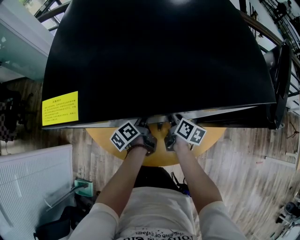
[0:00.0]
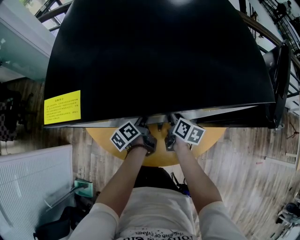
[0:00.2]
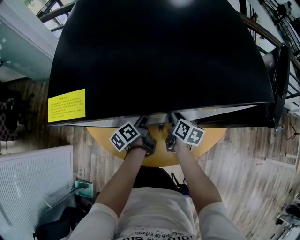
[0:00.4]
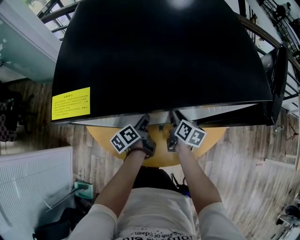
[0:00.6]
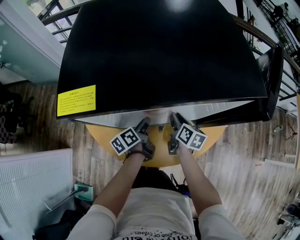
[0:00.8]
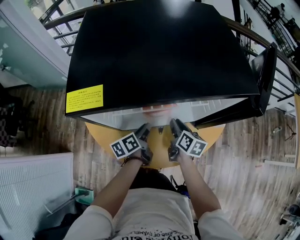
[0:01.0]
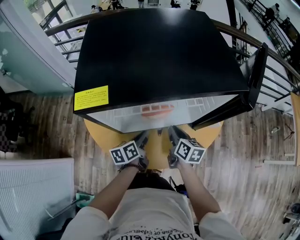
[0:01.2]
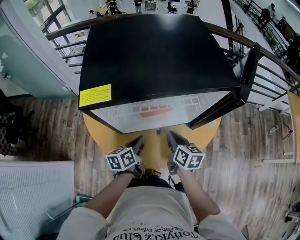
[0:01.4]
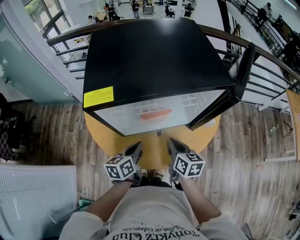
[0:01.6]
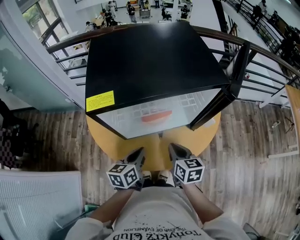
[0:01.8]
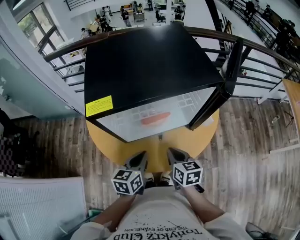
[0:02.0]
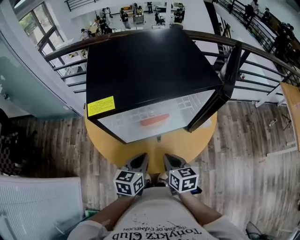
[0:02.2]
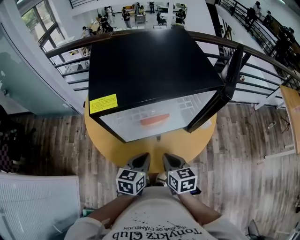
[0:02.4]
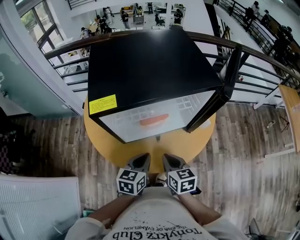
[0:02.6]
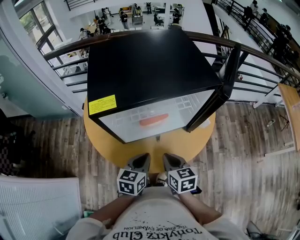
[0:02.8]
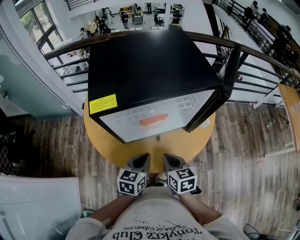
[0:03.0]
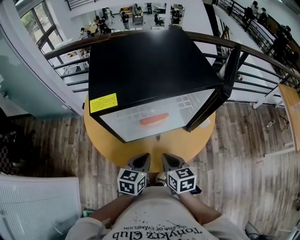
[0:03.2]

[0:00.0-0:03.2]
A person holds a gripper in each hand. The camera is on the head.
0:00.0 to 0:01.6: The right gripper shifts by approximately 20 cm.
0:01.6 to 0:03.2: The right gripper ends up some 10 cm from where it was.

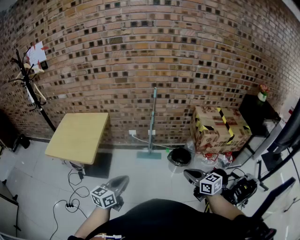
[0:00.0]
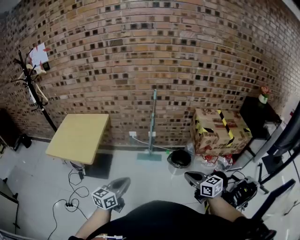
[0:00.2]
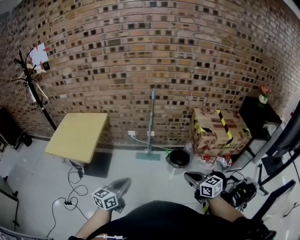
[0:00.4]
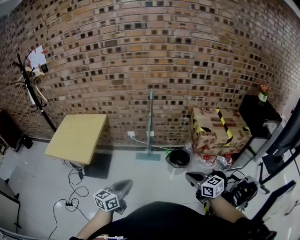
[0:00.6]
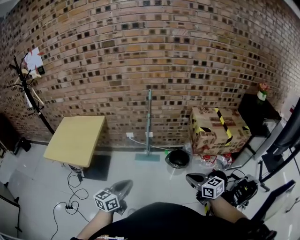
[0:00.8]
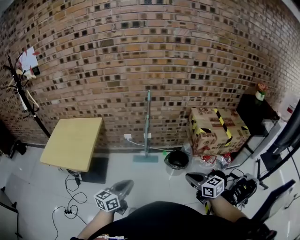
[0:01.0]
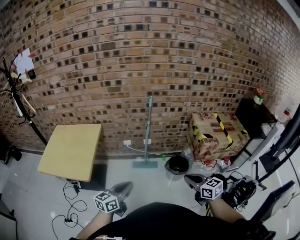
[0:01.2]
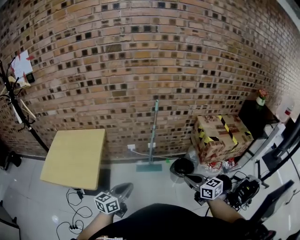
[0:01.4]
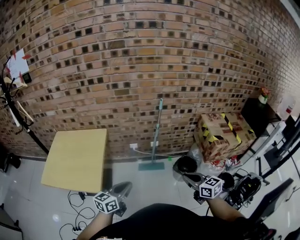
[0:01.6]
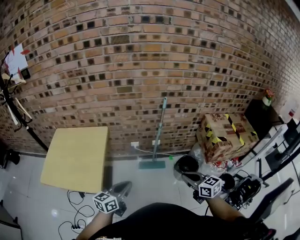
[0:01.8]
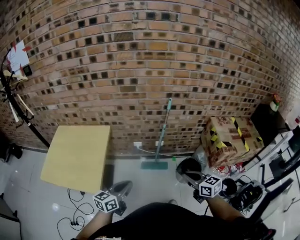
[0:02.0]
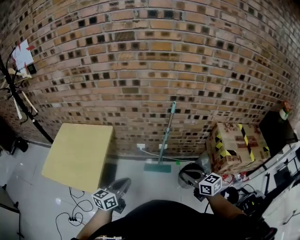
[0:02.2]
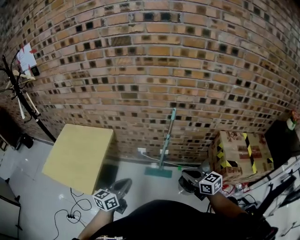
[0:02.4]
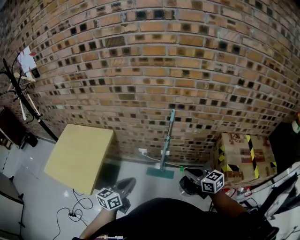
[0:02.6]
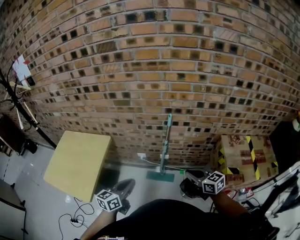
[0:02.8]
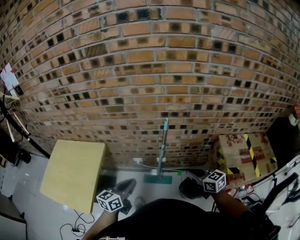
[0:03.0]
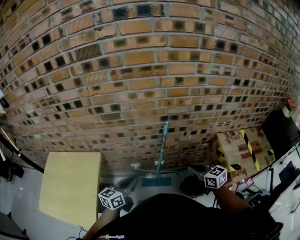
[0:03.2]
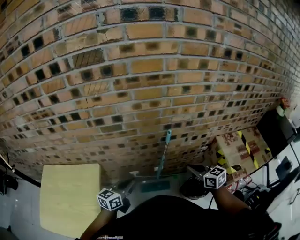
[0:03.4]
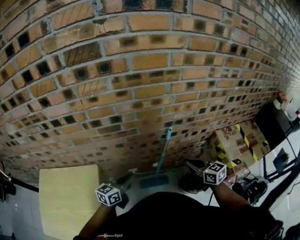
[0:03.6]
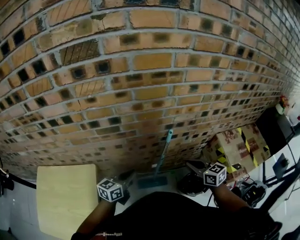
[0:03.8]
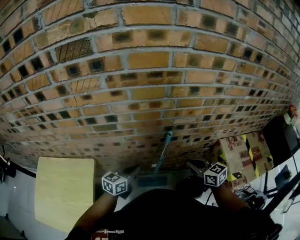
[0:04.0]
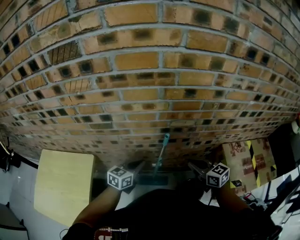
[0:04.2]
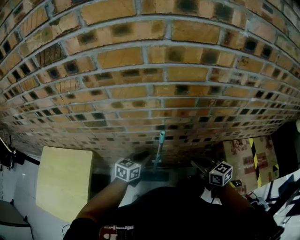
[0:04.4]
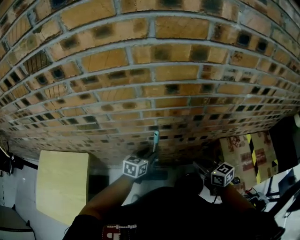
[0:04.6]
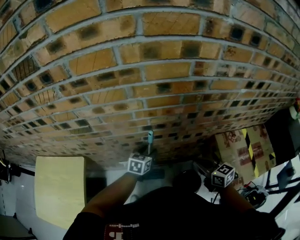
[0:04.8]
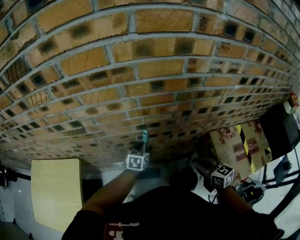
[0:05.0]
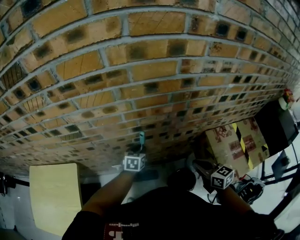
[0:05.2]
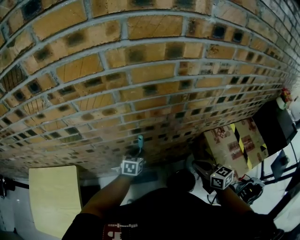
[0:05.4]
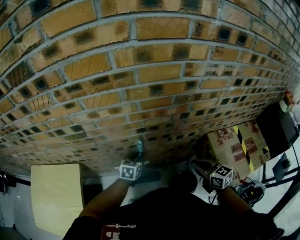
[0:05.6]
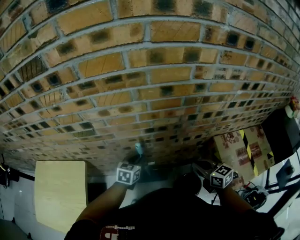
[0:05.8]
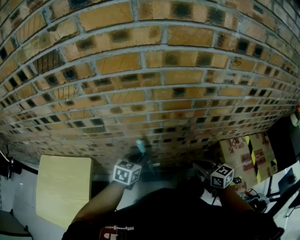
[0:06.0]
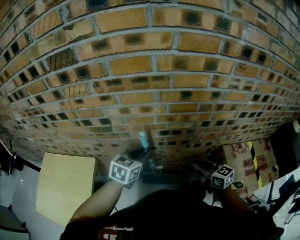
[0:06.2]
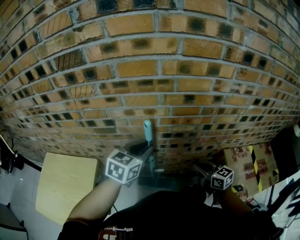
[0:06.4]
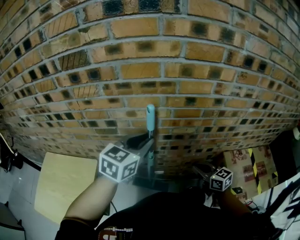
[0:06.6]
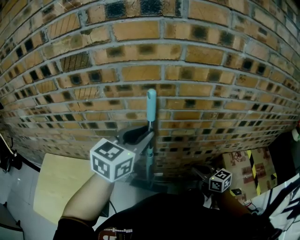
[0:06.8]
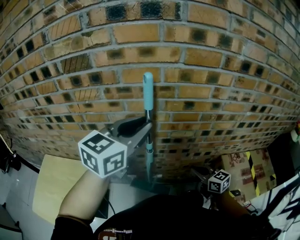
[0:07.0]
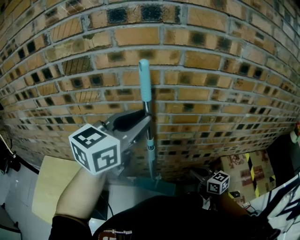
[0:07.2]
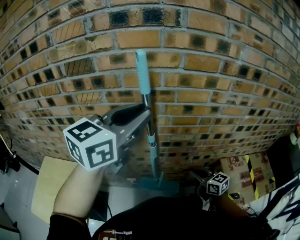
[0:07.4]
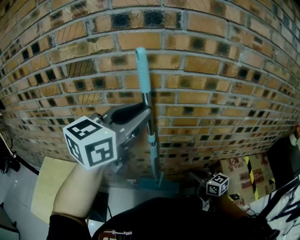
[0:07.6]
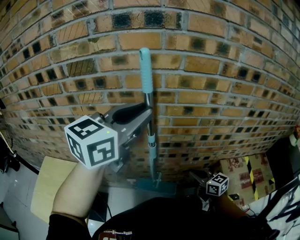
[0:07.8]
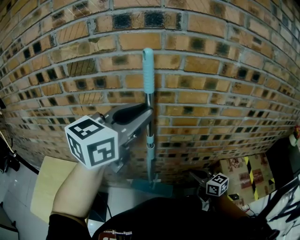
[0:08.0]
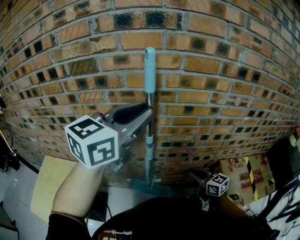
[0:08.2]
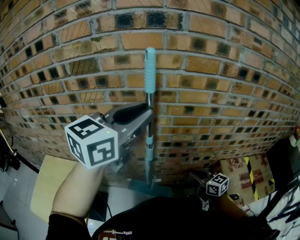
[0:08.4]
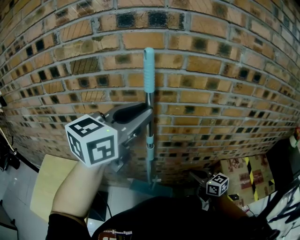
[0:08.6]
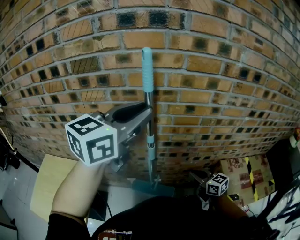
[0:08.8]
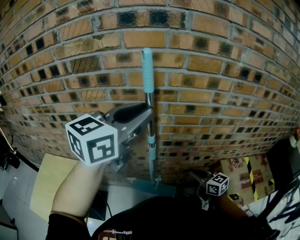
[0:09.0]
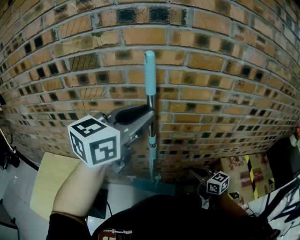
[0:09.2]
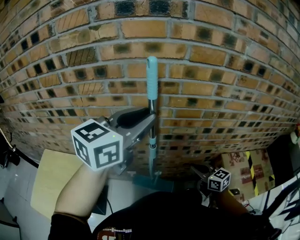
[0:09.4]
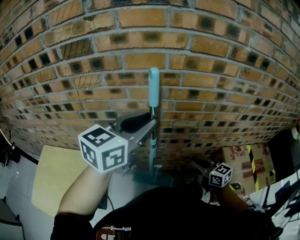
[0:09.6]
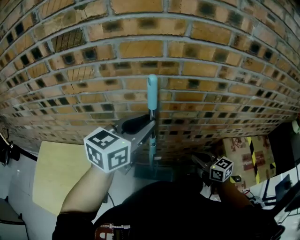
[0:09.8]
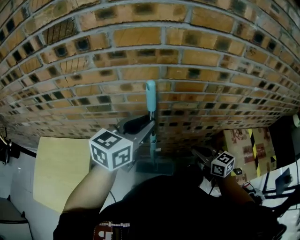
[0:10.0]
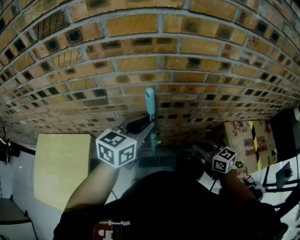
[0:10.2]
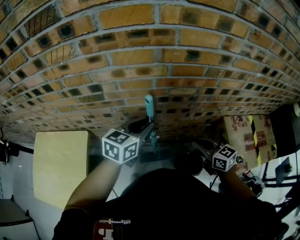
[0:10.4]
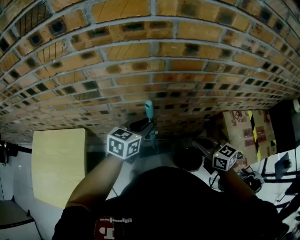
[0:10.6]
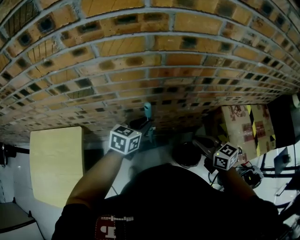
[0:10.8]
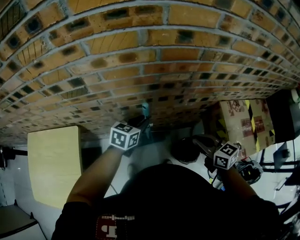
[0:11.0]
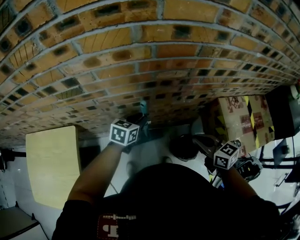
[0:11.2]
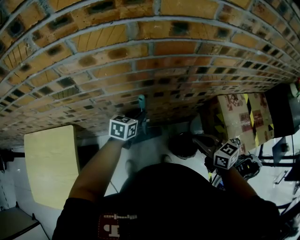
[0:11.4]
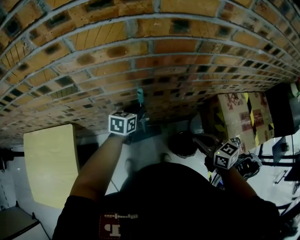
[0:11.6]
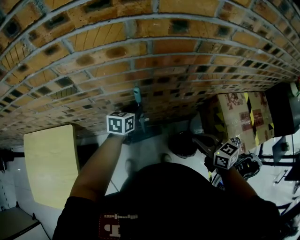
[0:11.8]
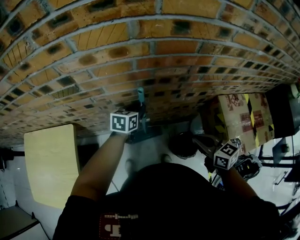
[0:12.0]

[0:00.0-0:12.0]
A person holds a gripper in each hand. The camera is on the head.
0:00.0 to 0:01.6: The two grippers go some 20 cm forward and to the left.
0:01.6 to 0:03.0: The two grippers go some 30 cm forward and to the right.
0:03.0 to 0:04.4: The left gripper goes some 30 cm forward, while the right gripper shifts some 20 cm forward.
0:04.4 to 0:06.0: The left gripper goes downward and returns, some 10 cm each way, and opens and closes again.
0:06.0 to 0:07.6: The right gripper moves roughly 5 cm, while the left gripper travels upward by roughly 40 cm, and tips its fingers upward by approximately 30 degrees.
0:07.6 to 0:09.0: Both grippers stay put.
0:09.0 to 0:10.4: The left gripper heads downward, covering approximately 30 cm, and rotates about 20 degrees.
0:10.4 to 0:12.0: The right gripper ends up approximately 5 cm from where it was; the left gripper is displaced downward by some 20 cm.

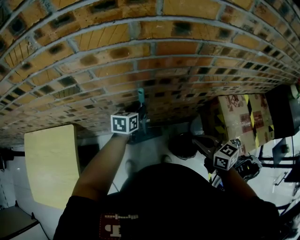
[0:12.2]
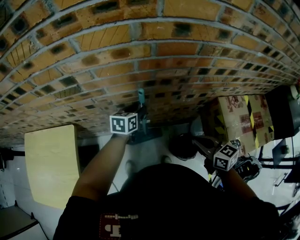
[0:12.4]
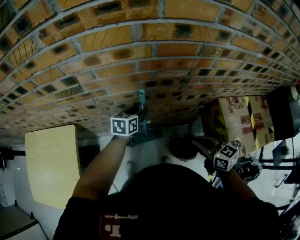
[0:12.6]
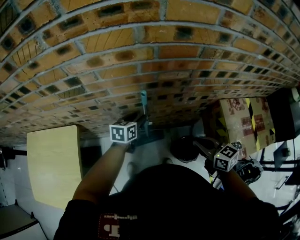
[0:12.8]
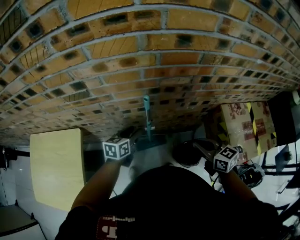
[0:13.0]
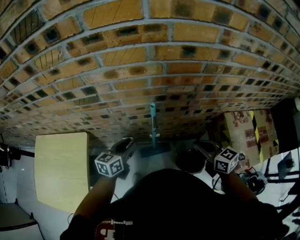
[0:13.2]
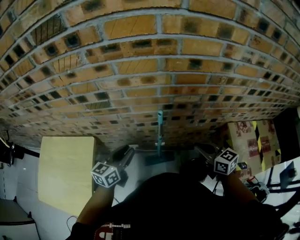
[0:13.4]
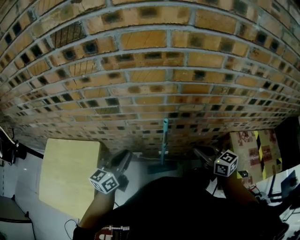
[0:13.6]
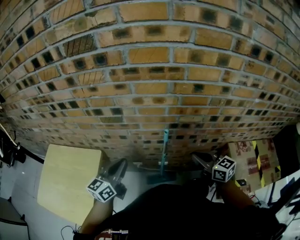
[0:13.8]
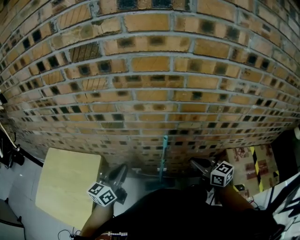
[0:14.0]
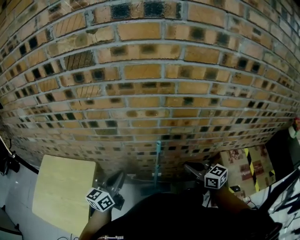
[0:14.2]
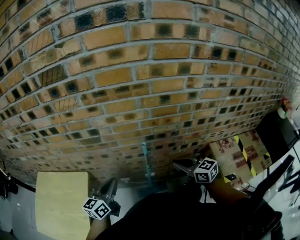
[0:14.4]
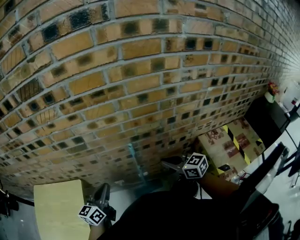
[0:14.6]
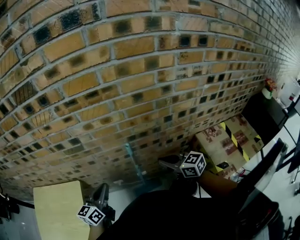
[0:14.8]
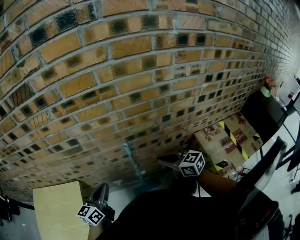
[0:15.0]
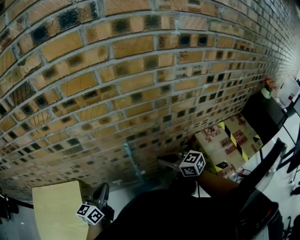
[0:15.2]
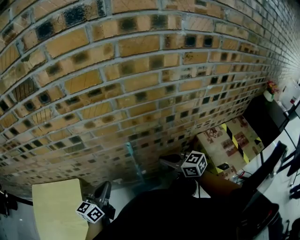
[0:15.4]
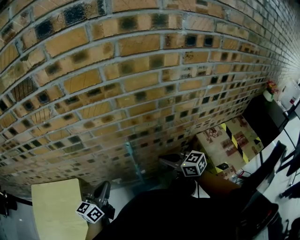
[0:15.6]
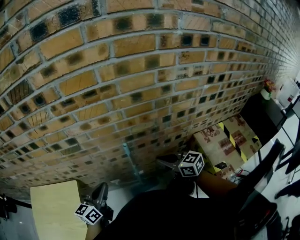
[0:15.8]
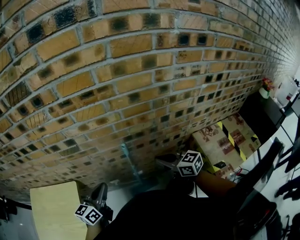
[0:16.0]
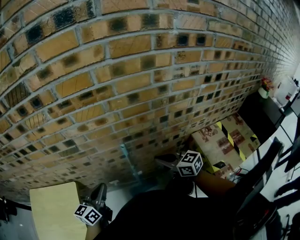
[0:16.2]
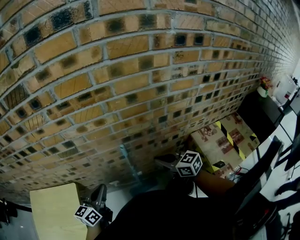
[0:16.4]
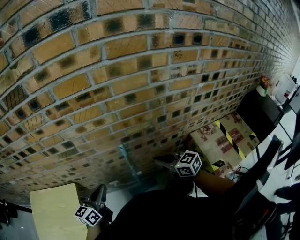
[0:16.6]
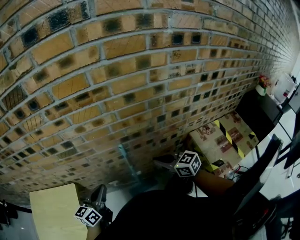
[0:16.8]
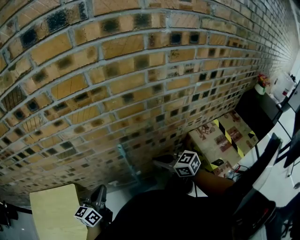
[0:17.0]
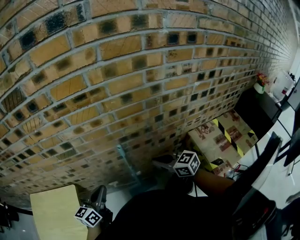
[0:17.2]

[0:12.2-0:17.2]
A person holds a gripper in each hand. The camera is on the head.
0:12.2 to 0:13.8: The right gripper shifts roughly 15 cm upward, forward and to the left; the left gripper is displaced upward, to the left and backward by roughly 30 cm, tilts its fingers roughly 30 degrees upward, and closes its fingers.
0:13.8 to 0:15.6: The grippers stay close to where they were, moving slightly.
0:15.6 to 0:17.2: Neither gripper changes place.

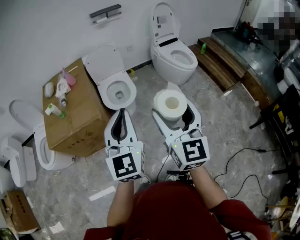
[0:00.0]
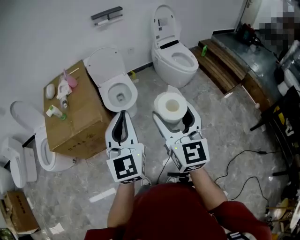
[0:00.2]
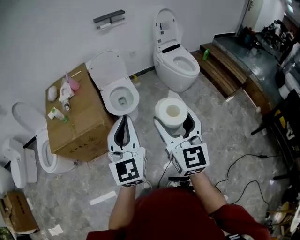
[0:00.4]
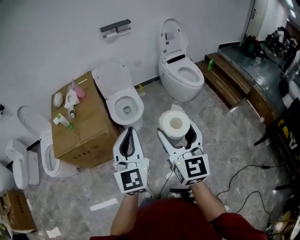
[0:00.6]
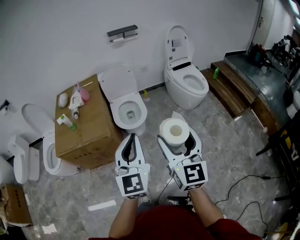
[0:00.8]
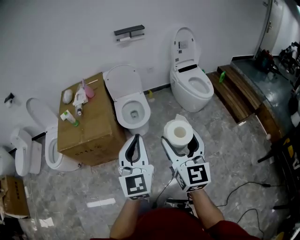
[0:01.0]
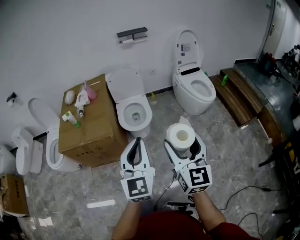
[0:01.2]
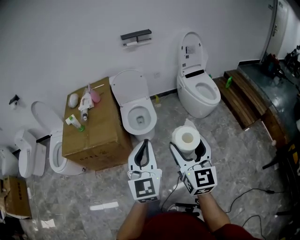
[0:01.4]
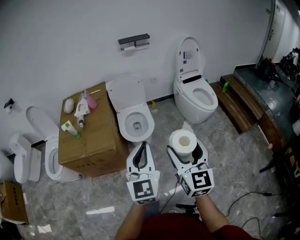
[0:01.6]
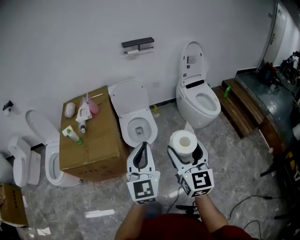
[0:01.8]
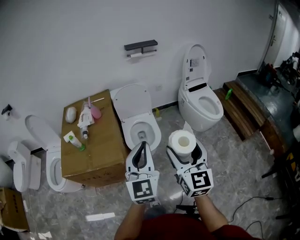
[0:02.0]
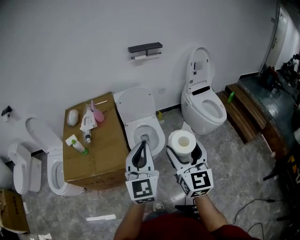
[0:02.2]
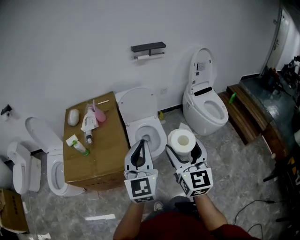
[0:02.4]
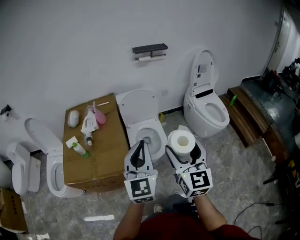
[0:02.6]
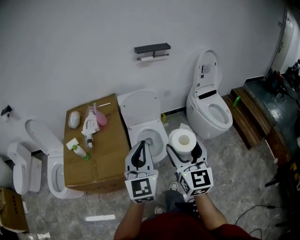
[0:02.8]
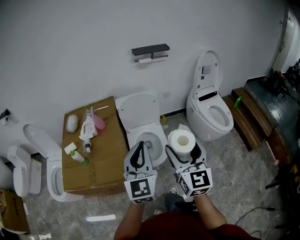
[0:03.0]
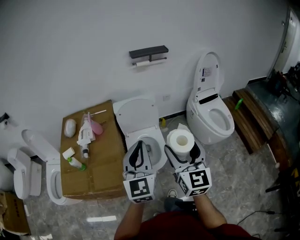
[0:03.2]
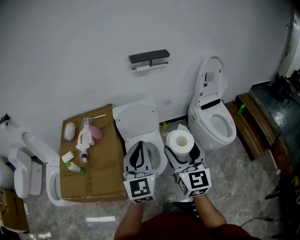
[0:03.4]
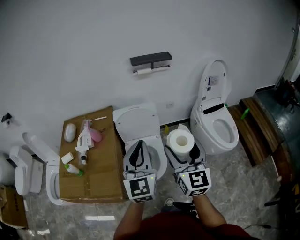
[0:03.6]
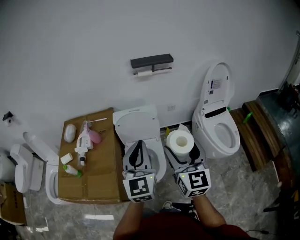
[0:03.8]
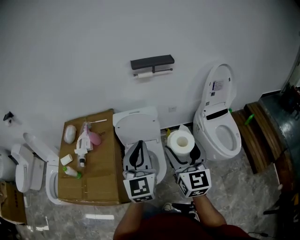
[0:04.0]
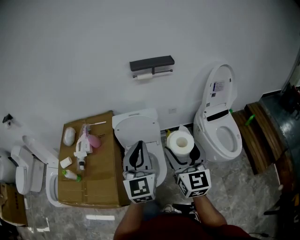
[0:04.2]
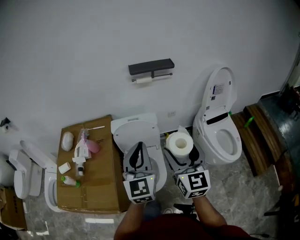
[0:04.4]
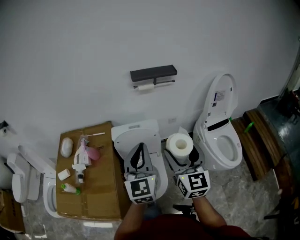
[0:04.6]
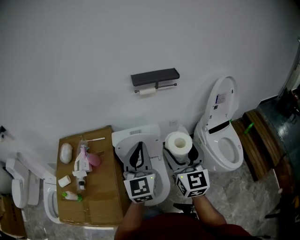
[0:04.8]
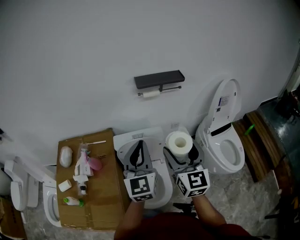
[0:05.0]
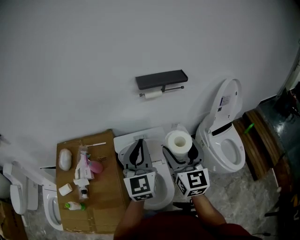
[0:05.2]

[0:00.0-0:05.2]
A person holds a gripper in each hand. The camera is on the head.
0:00.0 to 0:01.8: Both grippers move forward, some 15 cm.
0:01.8 to 0:03.4: The grippers both shift forward by about 30 cm.
0:03.4 to 0:05.2: The grippers both shift forward by about 30 cm.
